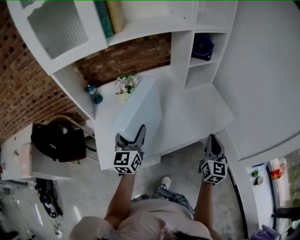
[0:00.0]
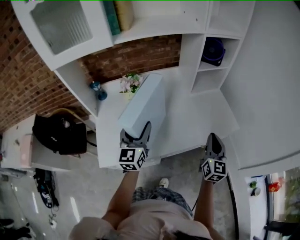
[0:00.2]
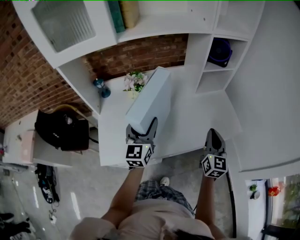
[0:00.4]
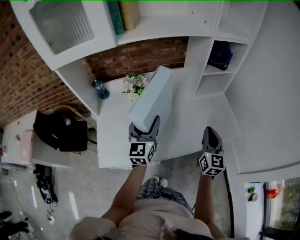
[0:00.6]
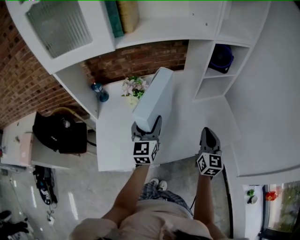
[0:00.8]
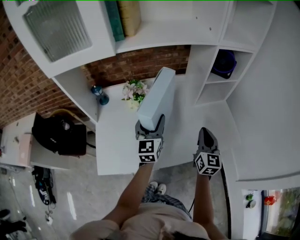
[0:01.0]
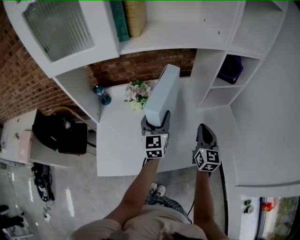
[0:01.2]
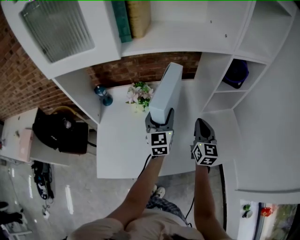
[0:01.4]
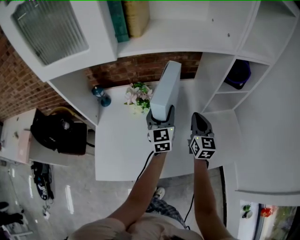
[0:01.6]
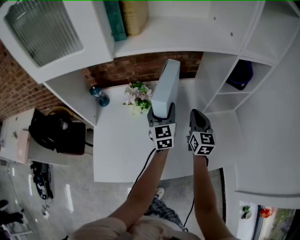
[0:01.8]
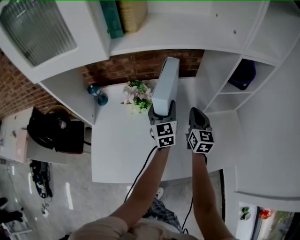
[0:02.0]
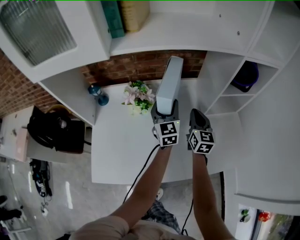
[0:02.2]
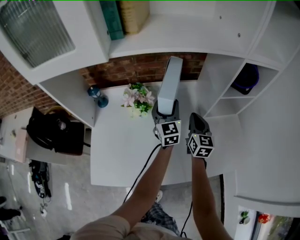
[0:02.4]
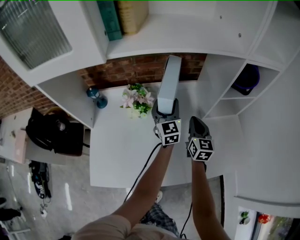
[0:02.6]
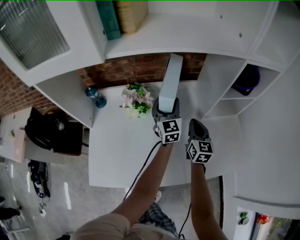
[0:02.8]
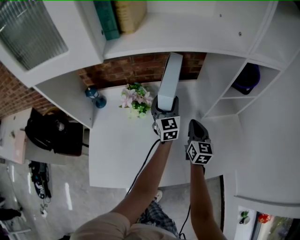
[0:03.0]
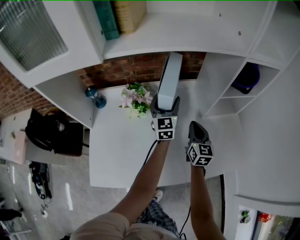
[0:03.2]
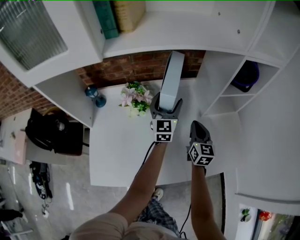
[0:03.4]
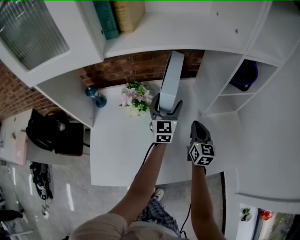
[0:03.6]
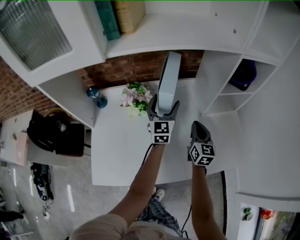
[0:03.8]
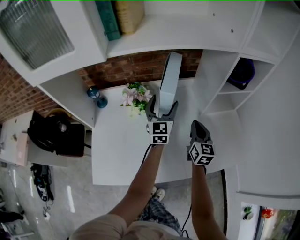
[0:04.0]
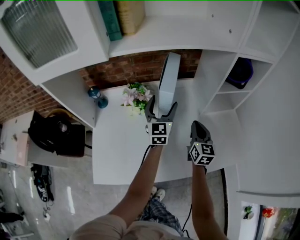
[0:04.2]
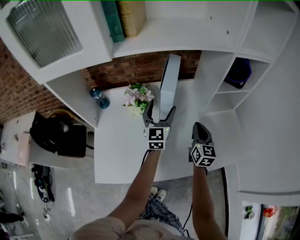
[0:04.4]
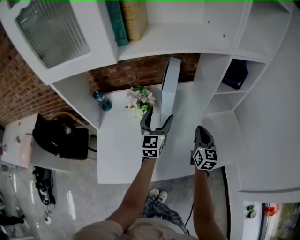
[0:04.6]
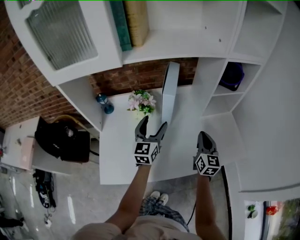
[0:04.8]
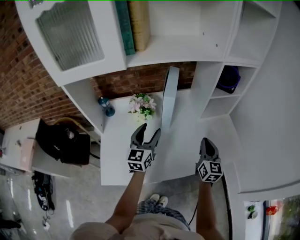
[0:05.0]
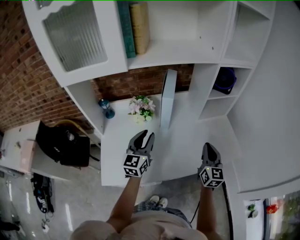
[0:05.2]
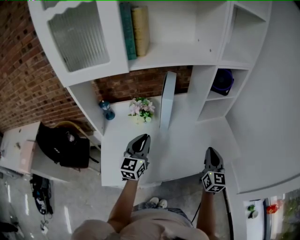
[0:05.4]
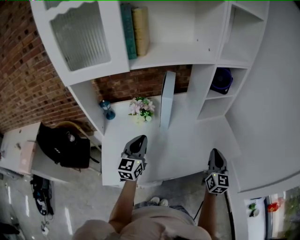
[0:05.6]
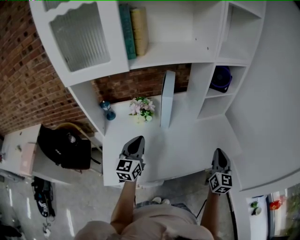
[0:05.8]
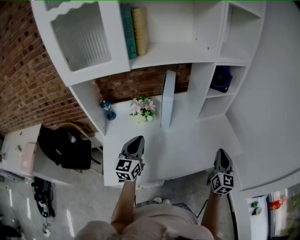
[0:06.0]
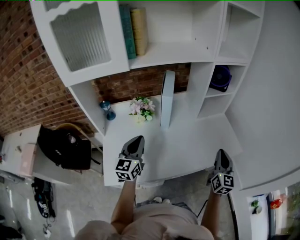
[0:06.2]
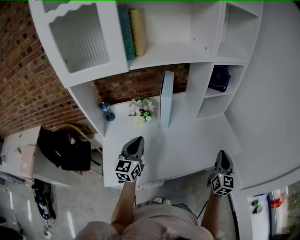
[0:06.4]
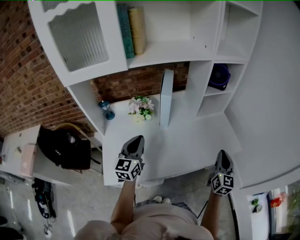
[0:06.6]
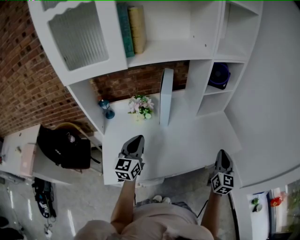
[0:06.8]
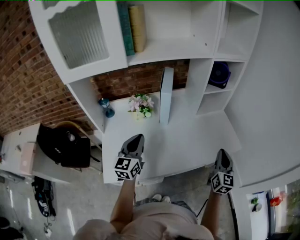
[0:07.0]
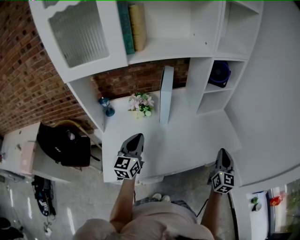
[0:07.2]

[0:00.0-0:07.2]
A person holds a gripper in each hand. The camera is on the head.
0:00.0 to 0:01.4: The right gripper goes some 30 cm forward and to the left, and changes its angle by approximately 20 degrees. Meanwhile the left gripper heads forward, covering roughly 25 cm.
0:01.4 to 0:02.8: Both grippers travel together forward and downward, some 15 cm.
0:02.8 to 0:04.4: The grippers both shift backward by roughly 5 cm.
0:04.4 to 0:05.8: The left gripper heads backward and to the left, covering some 25 cm, and closes up; the right gripper moves backward, to the right and upward, approximately 25 cm.
0:05.8 to 0:07.2: The grippers move only a little.

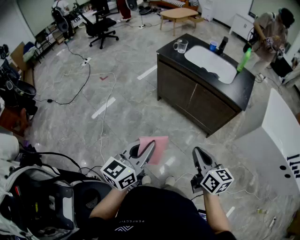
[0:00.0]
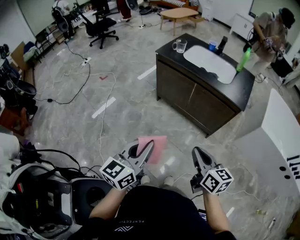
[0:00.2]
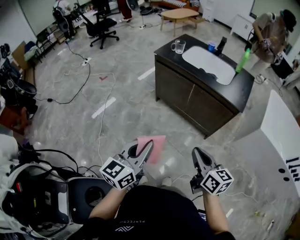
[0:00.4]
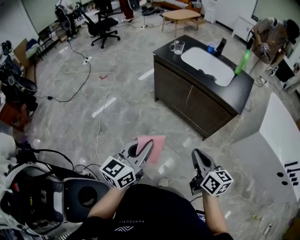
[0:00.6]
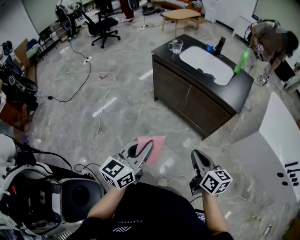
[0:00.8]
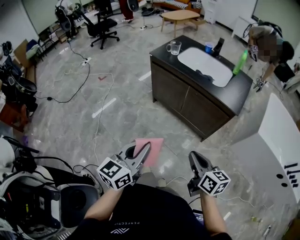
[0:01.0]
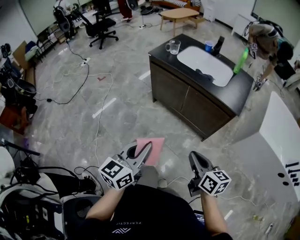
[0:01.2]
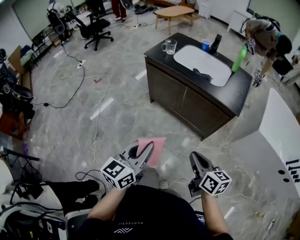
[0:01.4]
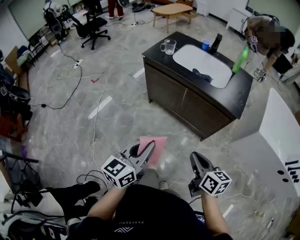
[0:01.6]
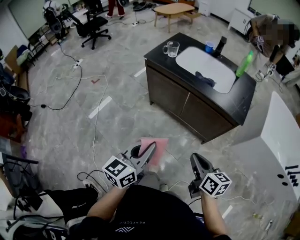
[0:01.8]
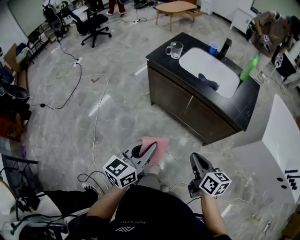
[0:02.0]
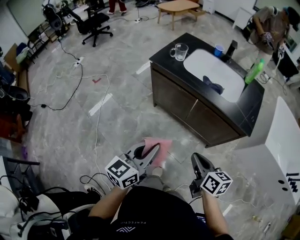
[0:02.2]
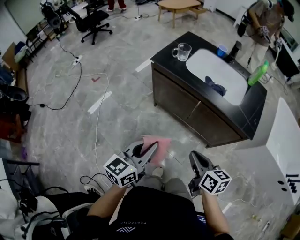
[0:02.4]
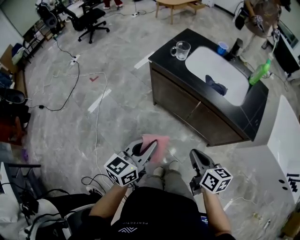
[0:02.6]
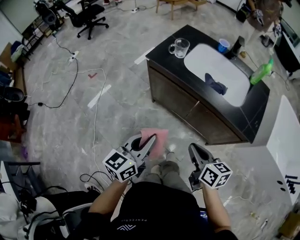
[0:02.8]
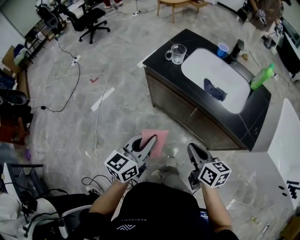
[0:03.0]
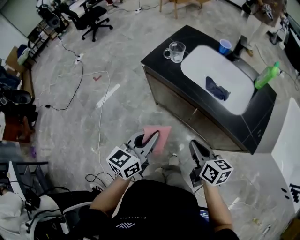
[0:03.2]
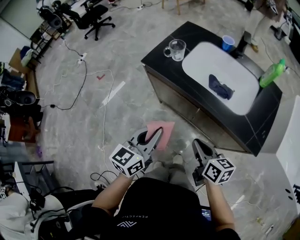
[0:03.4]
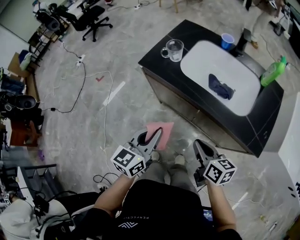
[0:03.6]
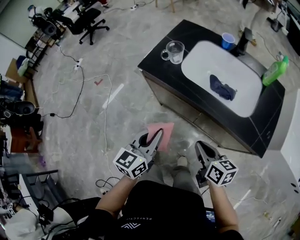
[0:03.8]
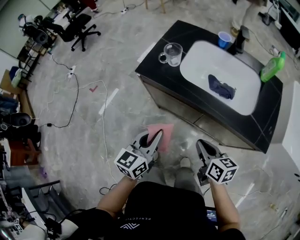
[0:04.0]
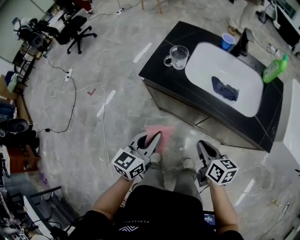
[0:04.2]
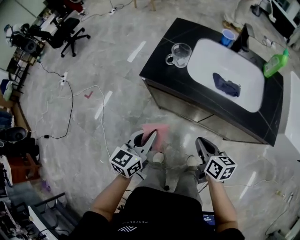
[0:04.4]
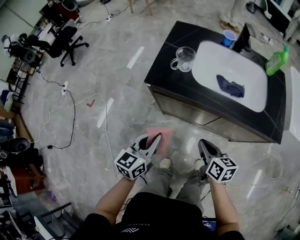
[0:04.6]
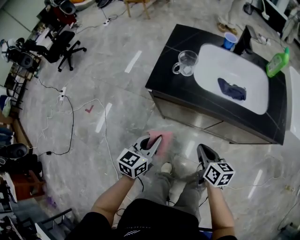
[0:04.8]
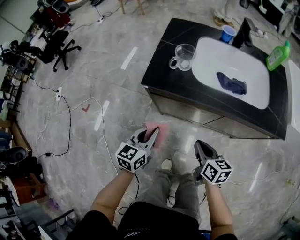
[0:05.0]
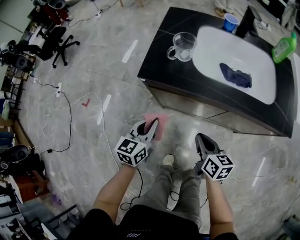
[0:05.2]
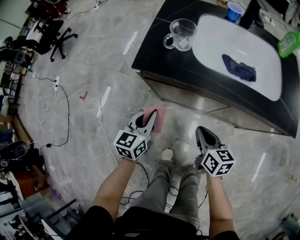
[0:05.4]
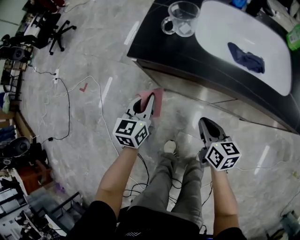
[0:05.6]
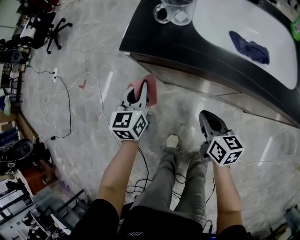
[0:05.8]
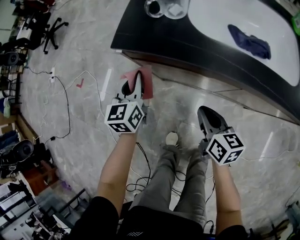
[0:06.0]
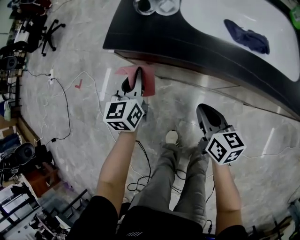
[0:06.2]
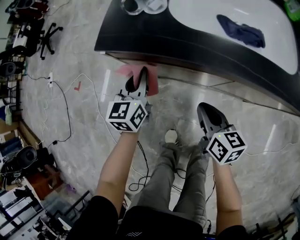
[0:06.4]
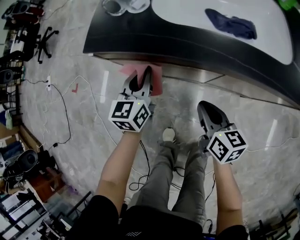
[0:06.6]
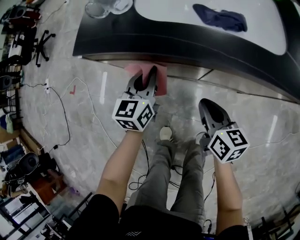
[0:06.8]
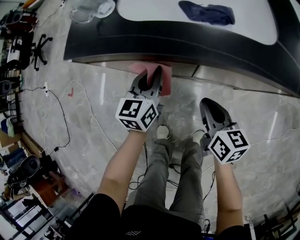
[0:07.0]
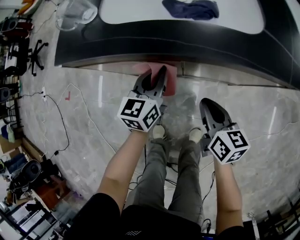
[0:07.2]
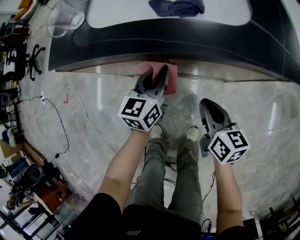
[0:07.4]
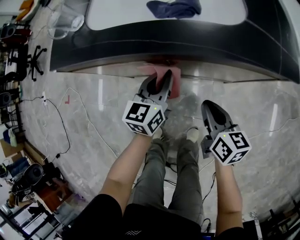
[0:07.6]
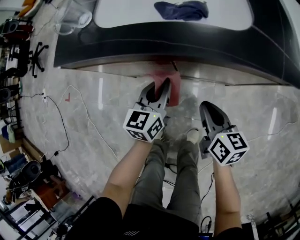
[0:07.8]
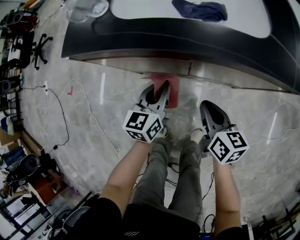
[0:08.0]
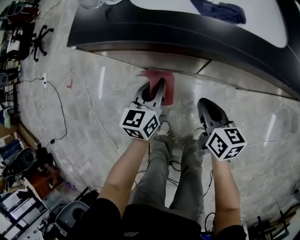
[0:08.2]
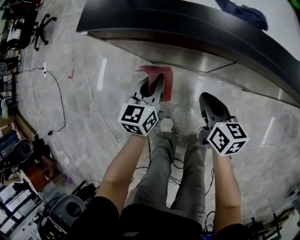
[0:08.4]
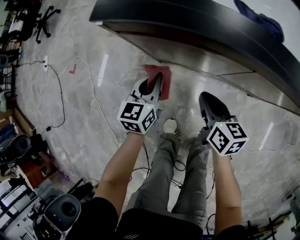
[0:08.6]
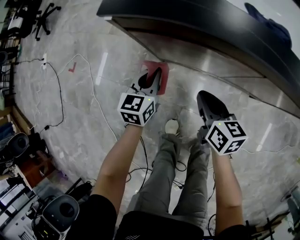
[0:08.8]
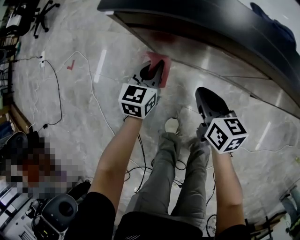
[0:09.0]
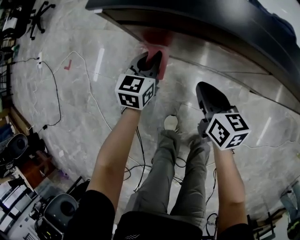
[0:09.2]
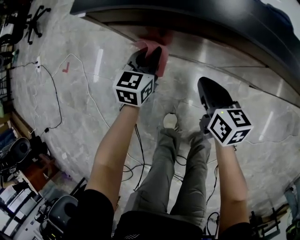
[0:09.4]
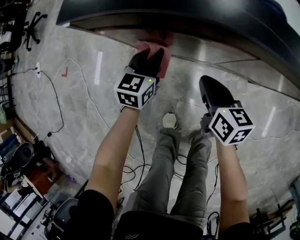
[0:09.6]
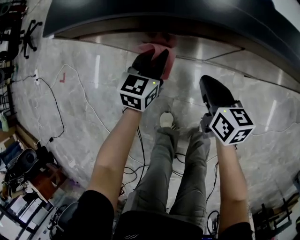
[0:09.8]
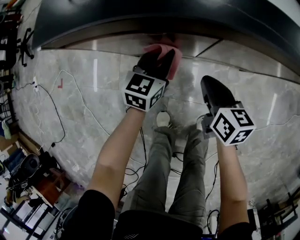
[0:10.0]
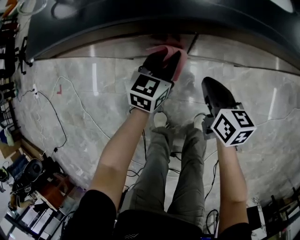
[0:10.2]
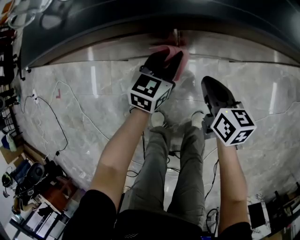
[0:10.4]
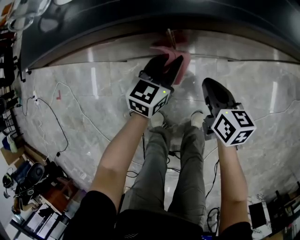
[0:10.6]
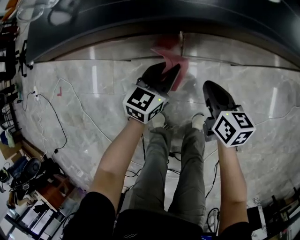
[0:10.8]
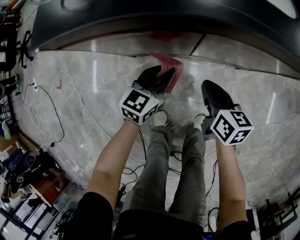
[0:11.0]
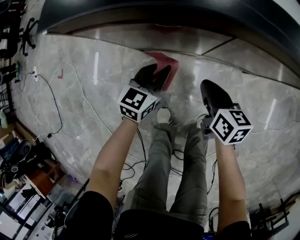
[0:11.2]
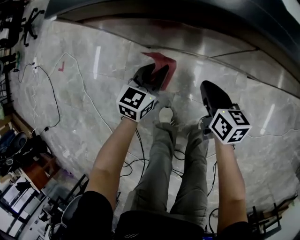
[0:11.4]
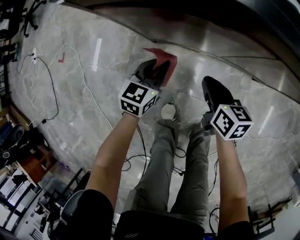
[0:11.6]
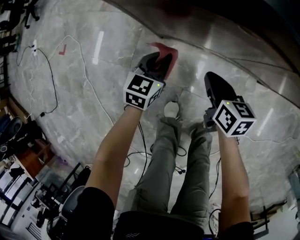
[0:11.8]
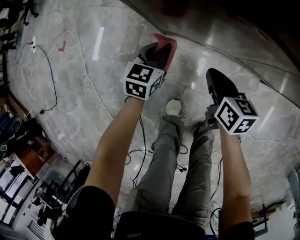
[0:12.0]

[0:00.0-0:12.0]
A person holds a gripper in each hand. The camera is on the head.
0:00.0 to 0:01.6: The two grippers go some 10 cm forward and to the right.
0:01.6 to 0:03.0: Both grippers travel together forward, approximately 25 cm.
0:03.0 to 0:04.4: The right gripper shifts roughly 15 cm forward, downward and to the left; the left gripper shifts approximately 20 cm forward, to the left and downward.
0:04.4 to 0:06.0: The right gripper goes roughly 15 cm downward and forward. Meanwhile the left gripper moves forward, downward and to the left, some 25 cm.
0:06.0 to 0:07.6: The right gripper heads to the right, covering roughly 25 cm, while the left gripper heads to the right, covering some 35 cm, and rotates approximately 30 degrees.
0:07.6 to 0:09.0: Both grippers travel together to the left, approximately 30 cm.
0:09.0 to 0:10.4: Both grippers move to the right, roughly 25 cm. The left gripper changes its angle by approximately 30 degrees.
0:10.4 to 0:12.0: The two grippers go roughly 25 cm to the left. The left gripper changes its angle by approximately 20 degrees.

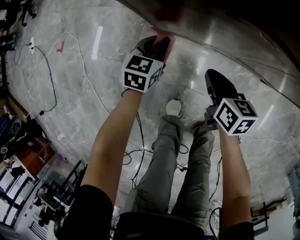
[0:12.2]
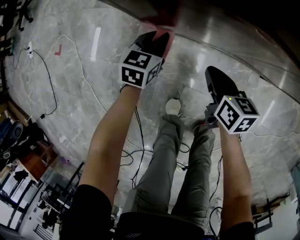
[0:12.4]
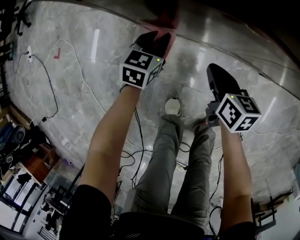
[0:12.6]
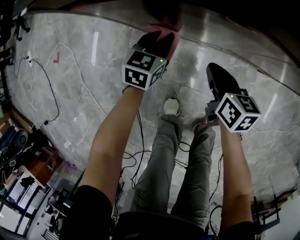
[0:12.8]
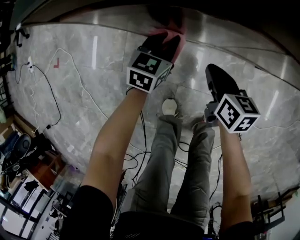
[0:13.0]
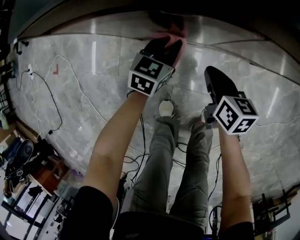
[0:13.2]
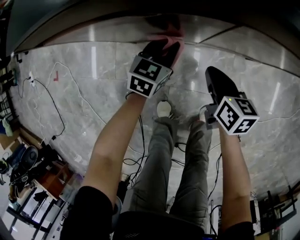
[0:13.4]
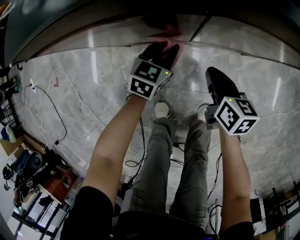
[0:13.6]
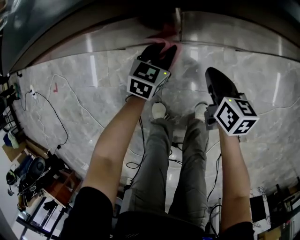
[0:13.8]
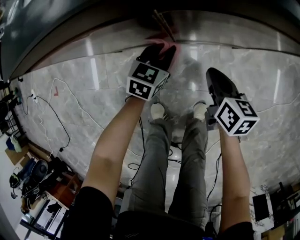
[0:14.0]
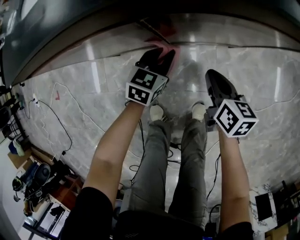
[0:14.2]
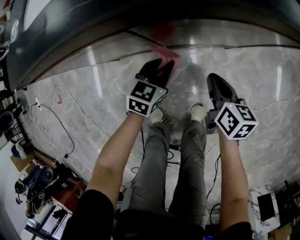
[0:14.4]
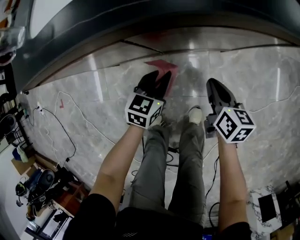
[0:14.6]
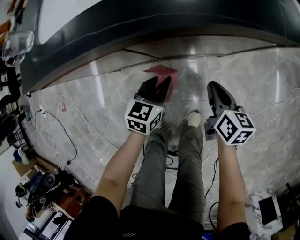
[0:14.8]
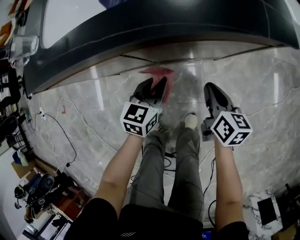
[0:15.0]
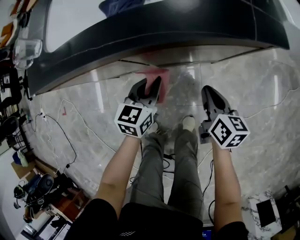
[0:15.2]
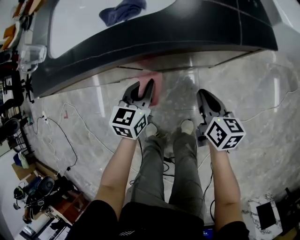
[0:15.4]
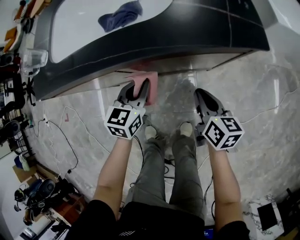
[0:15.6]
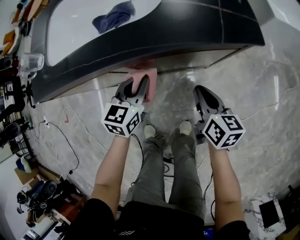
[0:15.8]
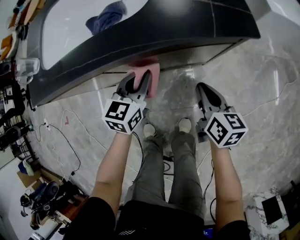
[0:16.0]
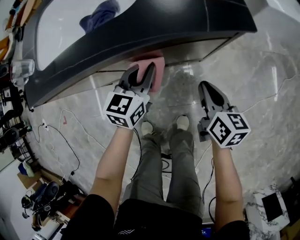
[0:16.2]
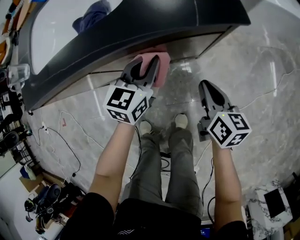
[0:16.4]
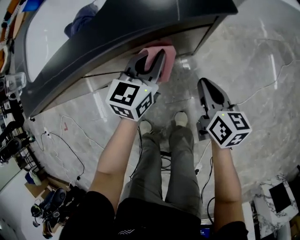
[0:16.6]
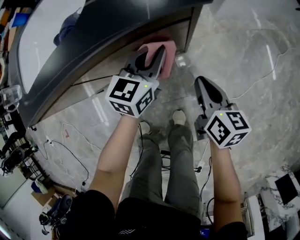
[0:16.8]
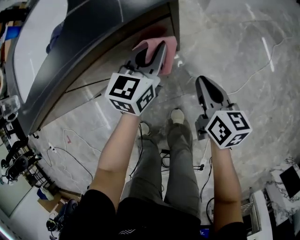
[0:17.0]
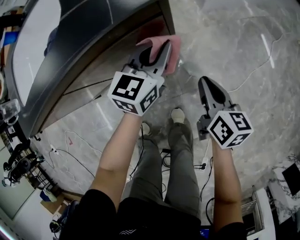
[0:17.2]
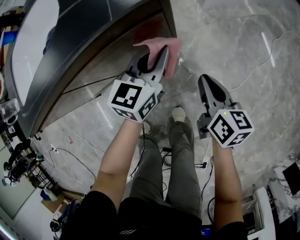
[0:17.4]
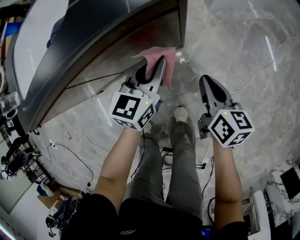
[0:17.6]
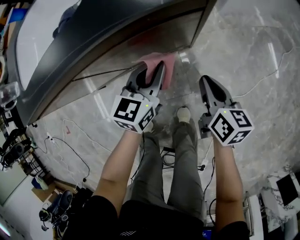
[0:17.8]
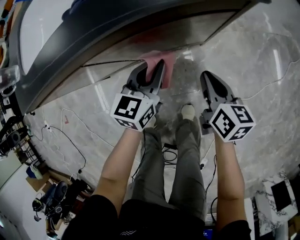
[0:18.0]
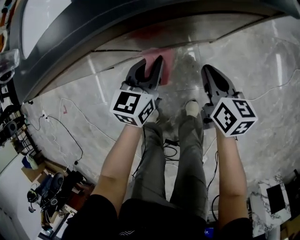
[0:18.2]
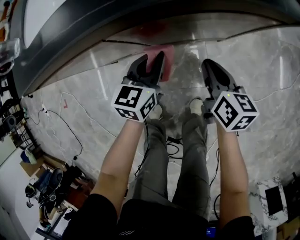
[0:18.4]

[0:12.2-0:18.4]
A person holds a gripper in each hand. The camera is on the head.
0:12.2 to 0:13.8: The two grippers go about 25 cm to the right. The right gripper swivels some 20 degrees. The left gripper rotates roughly 20 degrees.
0:13.8 to 0:15.4: The left gripper is displaced upward and to the right by some 20 cm, while the right gripper heads to the right and upward, covering roughly 20 cm.
0:15.4 to 0:16.8: The right gripper goes some 10 cm to the right. The left gripper moves to the right, some 20 cm, and changes its angle by some 20 degrees.
0:16.8 to 0:18.4: The right gripper heads to the left and downward, covering about 15 cm, while the left gripper goes about 20 cm to the left, backward and downward.
